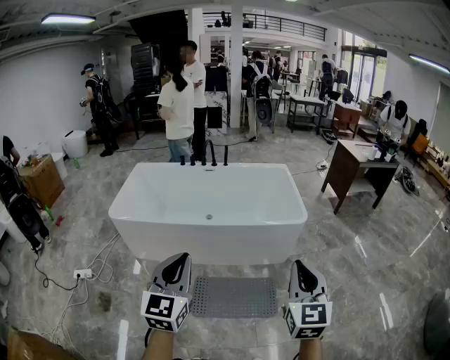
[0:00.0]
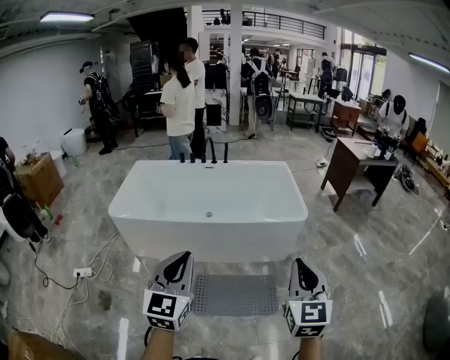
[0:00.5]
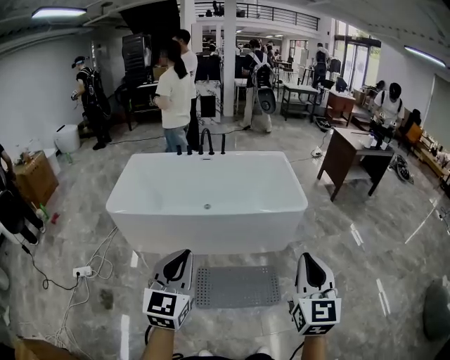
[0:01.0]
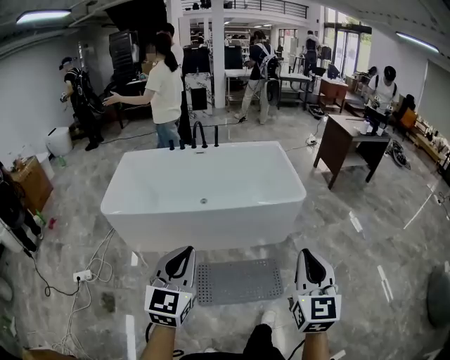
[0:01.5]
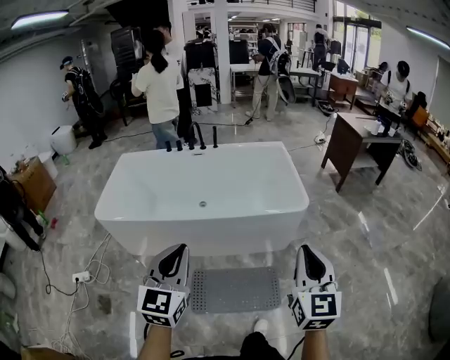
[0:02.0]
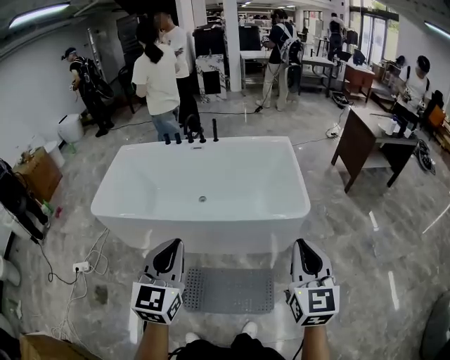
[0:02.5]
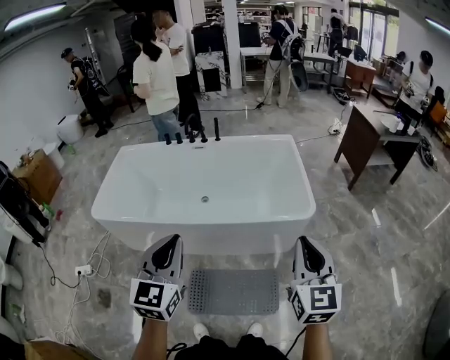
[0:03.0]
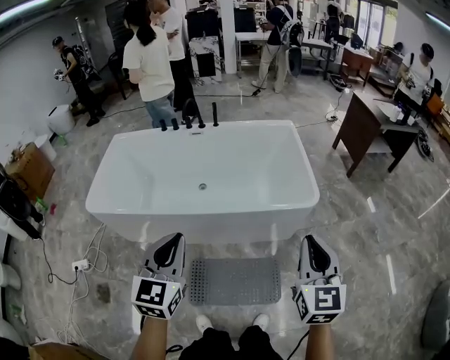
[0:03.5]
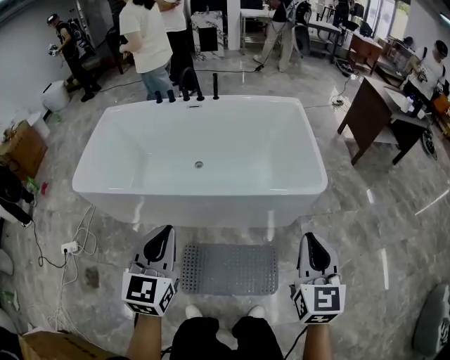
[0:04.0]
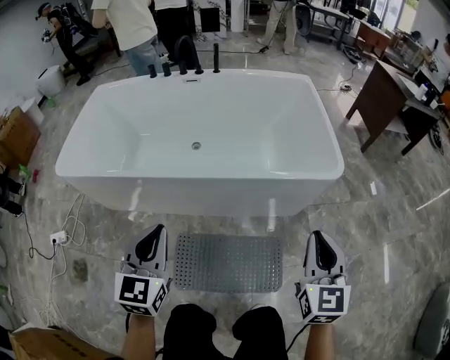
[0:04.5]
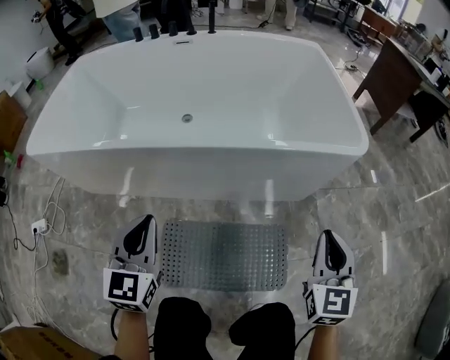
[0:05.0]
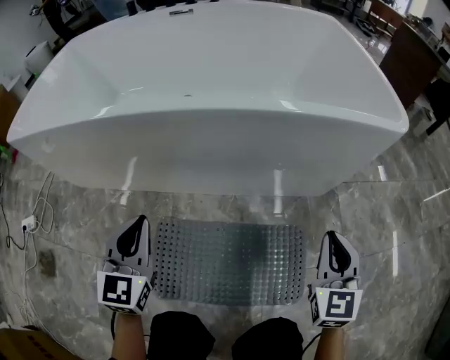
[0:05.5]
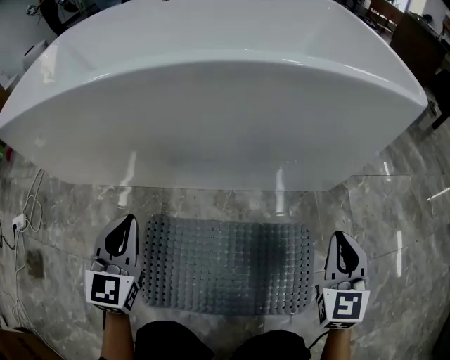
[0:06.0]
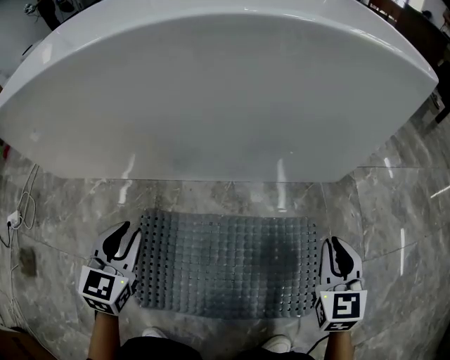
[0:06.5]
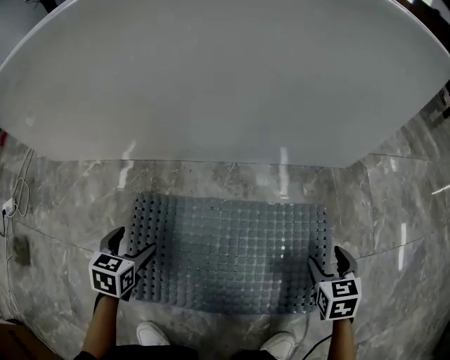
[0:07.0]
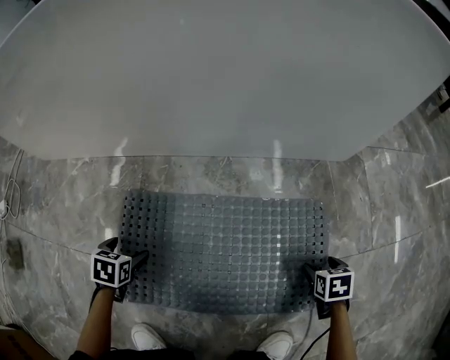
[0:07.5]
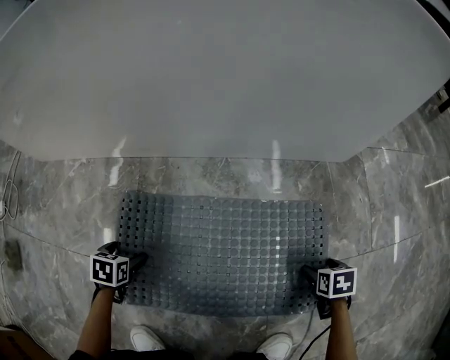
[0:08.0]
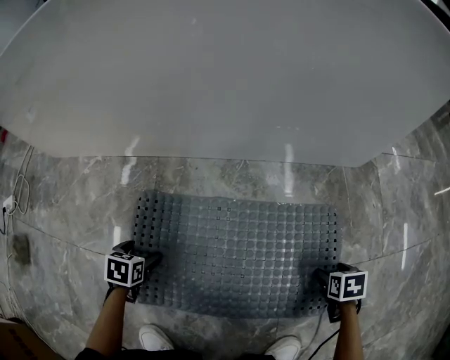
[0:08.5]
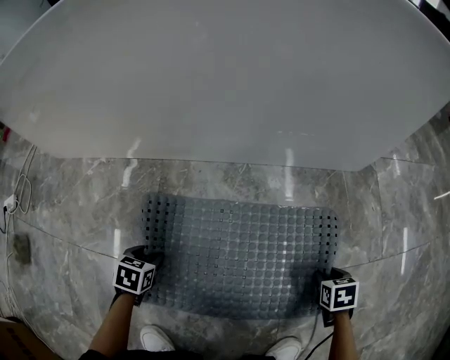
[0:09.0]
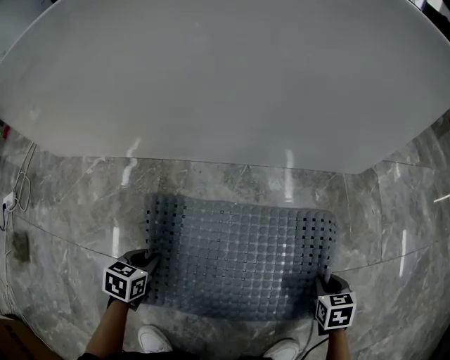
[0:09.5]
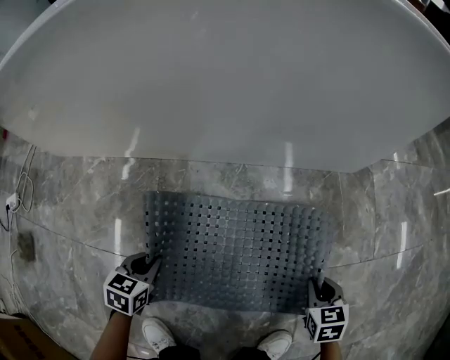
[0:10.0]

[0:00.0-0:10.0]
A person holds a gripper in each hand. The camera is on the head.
0:00.0 to 0:02.0: Both grippers travel together forward, some 10 cm.
0:02.0 to 0:04.0: The grippers both shift forward and downward by some 20 cm.
0:04.0 to 0:06.0: Both grippers travel together downward, approximately 60 cm.
0:06.0 to 0:08.0: Both grippers move downward, approximately 35 cm. The right gripper tips its fingers downward by approximately 60 degrees, and opens its fingers, while the left gripper tips its fingers downward by roughly 60 degrees, and opens up.
0:08.0 to 0:10.0: The grippers both shift upward by approximately 10 cm. The right gripper changes its angle by roughly 20 degrees, and closes its fingers. The left gripper closes up.

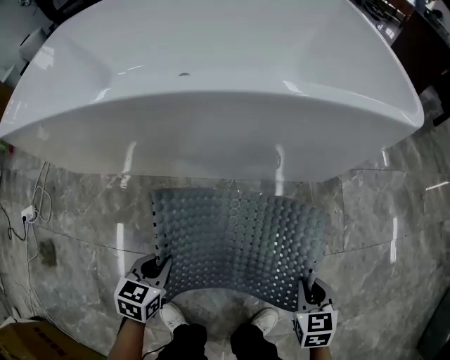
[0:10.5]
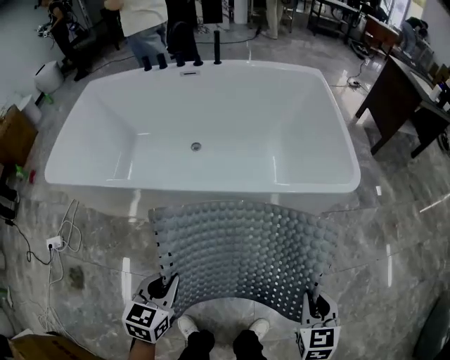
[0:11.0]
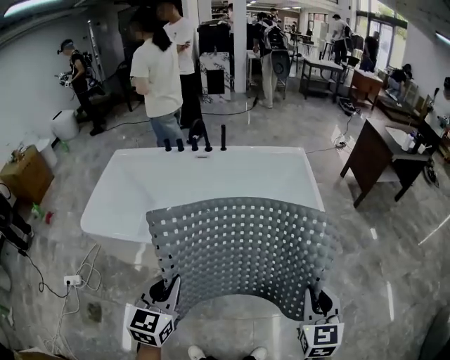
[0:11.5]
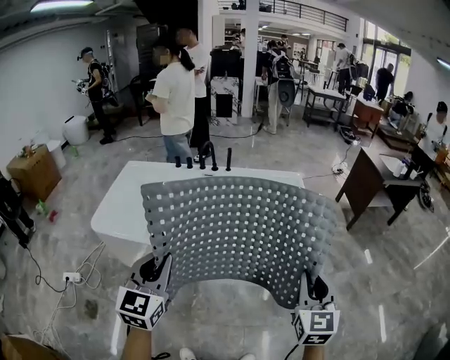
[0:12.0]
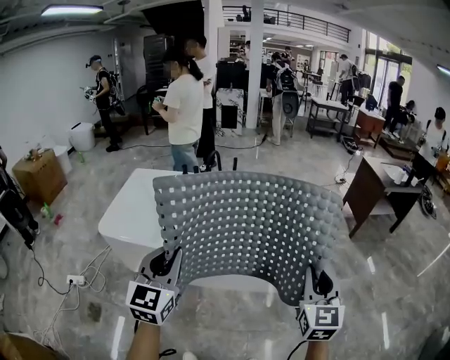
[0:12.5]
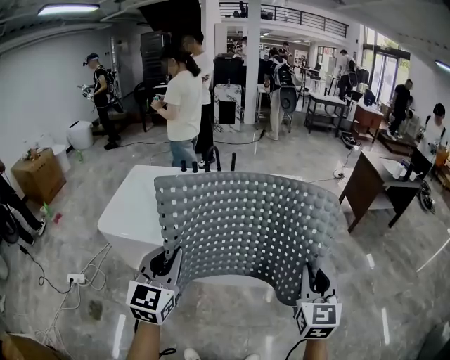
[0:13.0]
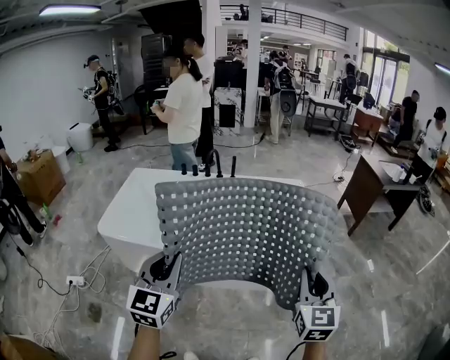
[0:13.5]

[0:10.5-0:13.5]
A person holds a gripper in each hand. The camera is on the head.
0:10.5 to 0:12.0: The two grippers go approximately 80 cm upward. The left gripper angles its fingers upward, by about 40 degrees. Meanwhile the right gripper angles its fingers upward, by approximately 40 degrees.
0:12.0 to 0:13.5: The grippers stay close to where they were, moving slightly.

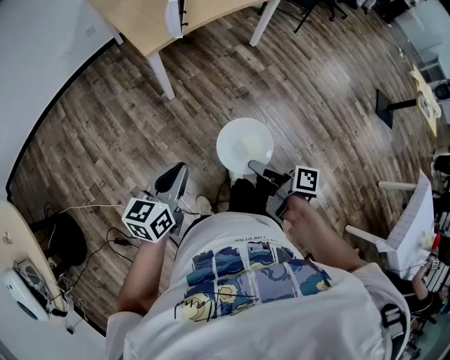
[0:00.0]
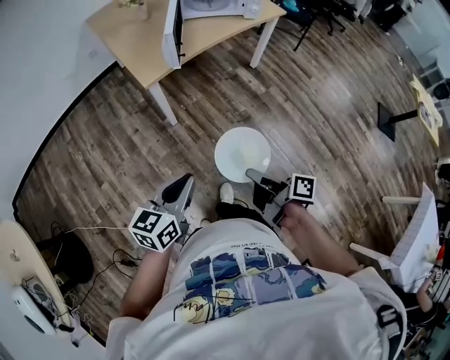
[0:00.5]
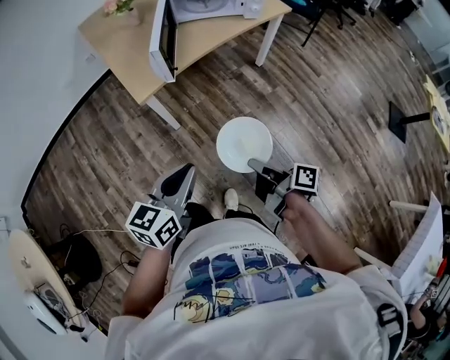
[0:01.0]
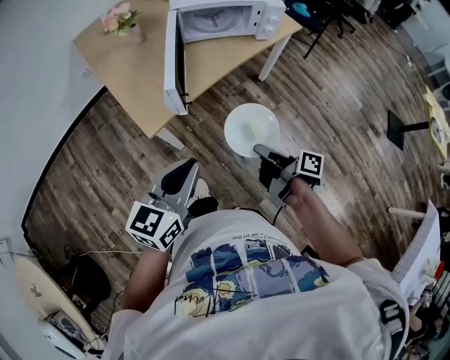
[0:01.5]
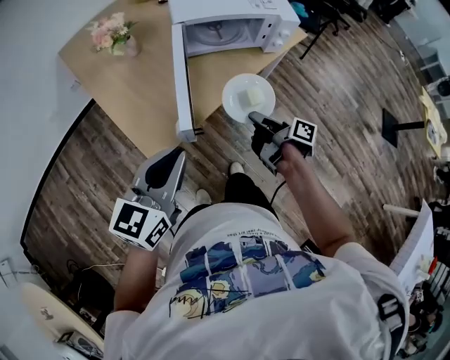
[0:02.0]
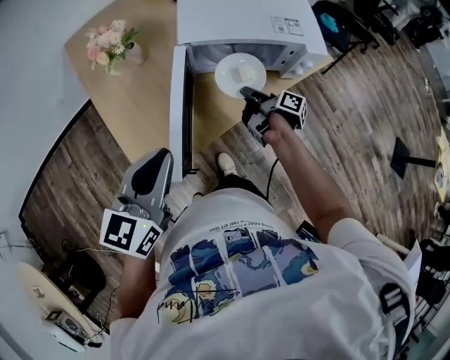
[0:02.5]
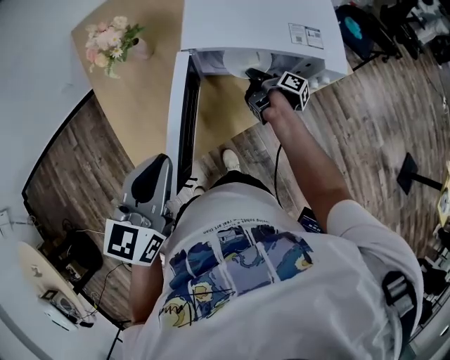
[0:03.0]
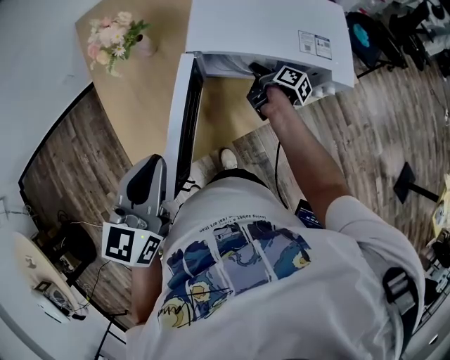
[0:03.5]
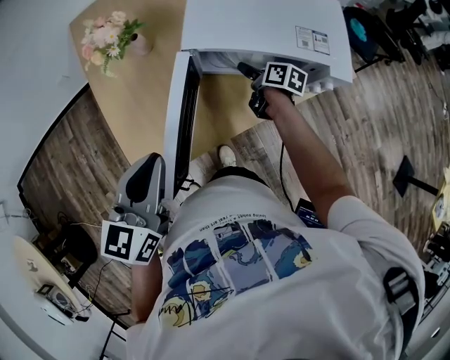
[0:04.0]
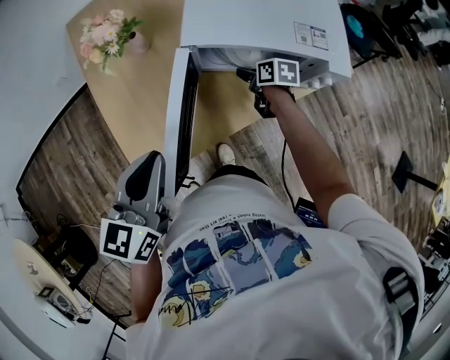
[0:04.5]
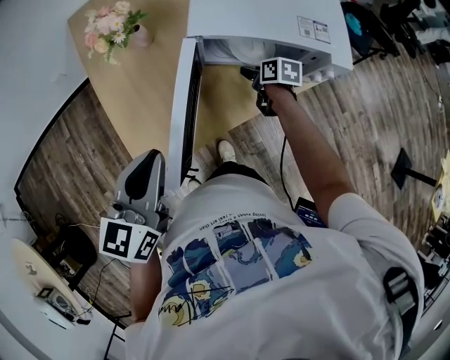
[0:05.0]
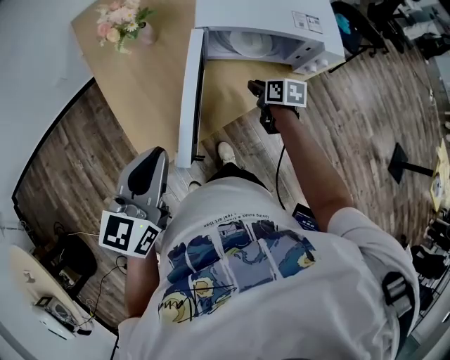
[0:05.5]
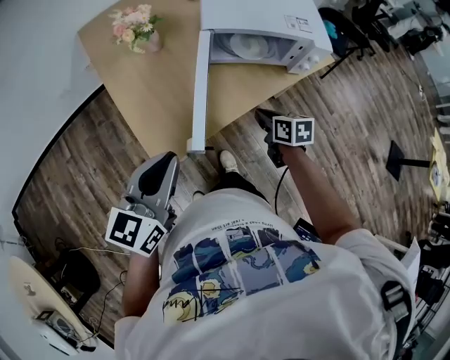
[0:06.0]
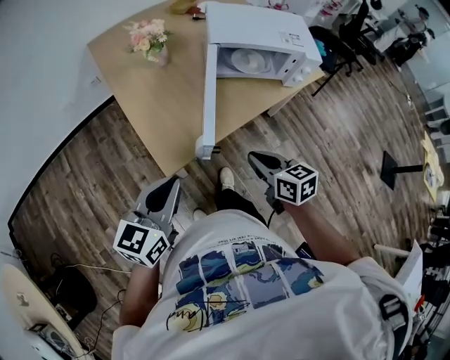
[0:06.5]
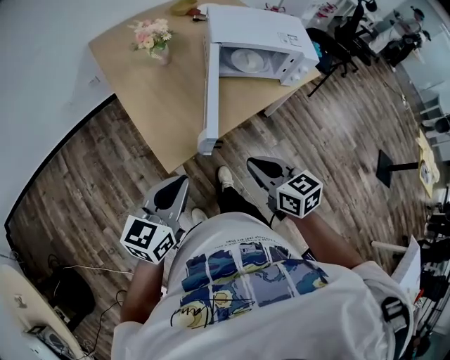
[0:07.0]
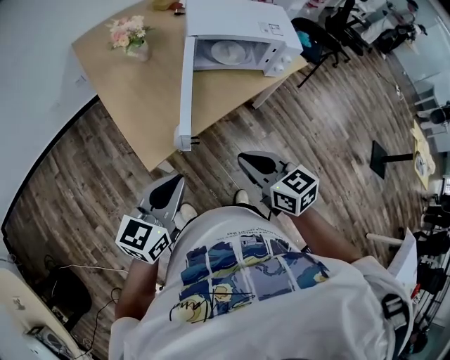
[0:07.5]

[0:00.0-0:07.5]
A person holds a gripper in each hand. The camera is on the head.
0:00.0 to 0:02.0: The two grippers travel together, forward, approximately 50 cm.
0:02.0 to 0:04.0: The left gripper moves forward, approximately 15 cm, and changes its angle by about 30 degrees, while the right gripper moves forward, some 35 cm, turns by some 40 degrees, and opens its fingers.
0:04.0 to 0:05.5: The left gripper travels backward by about 5 cm; the right gripper heads backward, covering some 10 cm, and closes up.
0:05.5 to 0:07.5: The right gripper goes approximately 35 cm backward and upward, and changes its angle by roughly 30 degrees. The left gripper is displaced backward by roughly 15 cm.

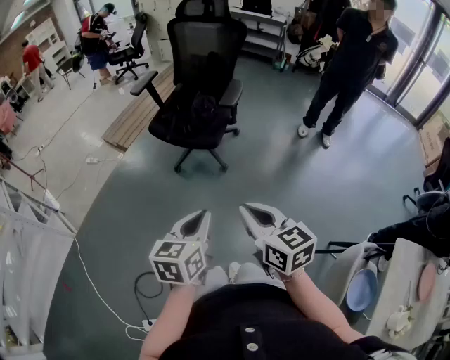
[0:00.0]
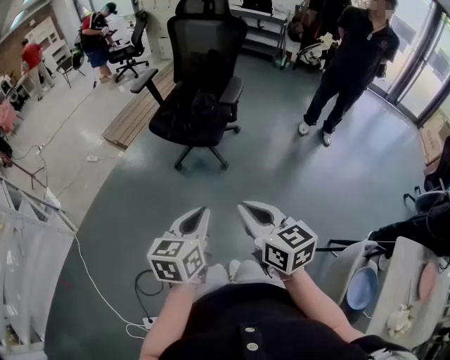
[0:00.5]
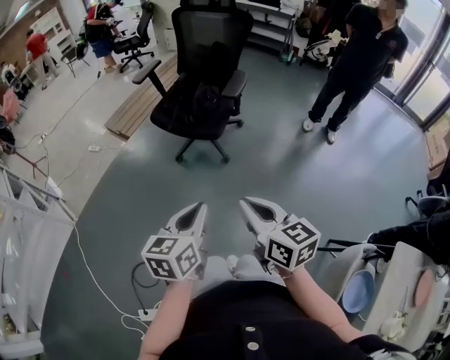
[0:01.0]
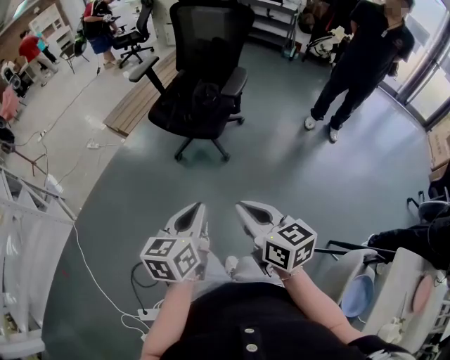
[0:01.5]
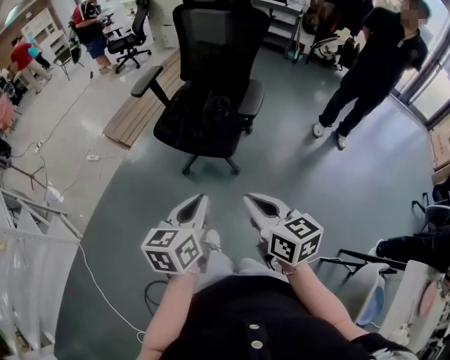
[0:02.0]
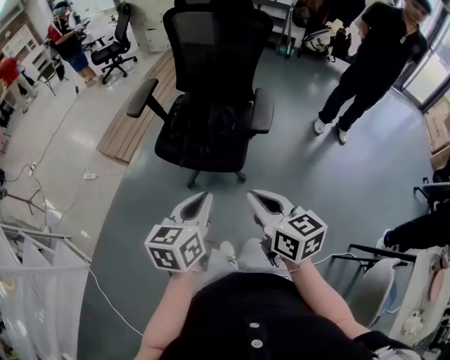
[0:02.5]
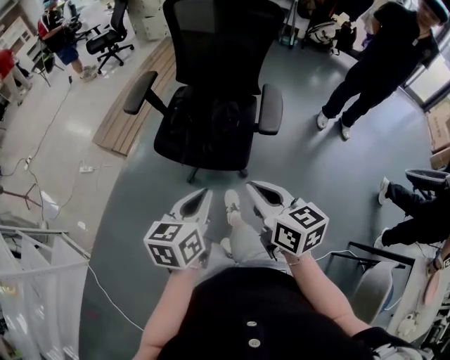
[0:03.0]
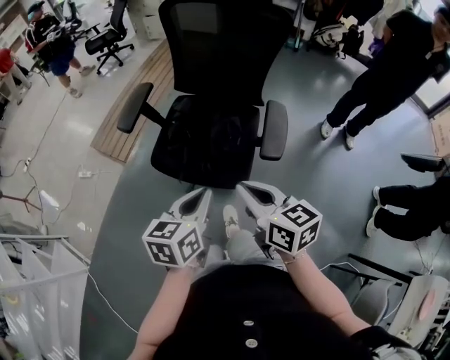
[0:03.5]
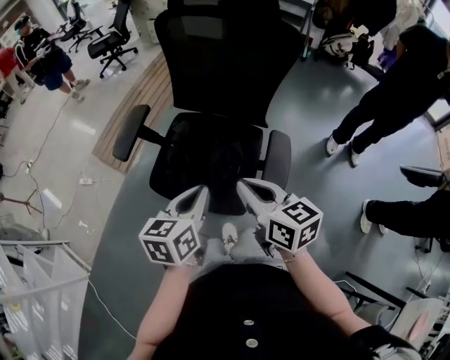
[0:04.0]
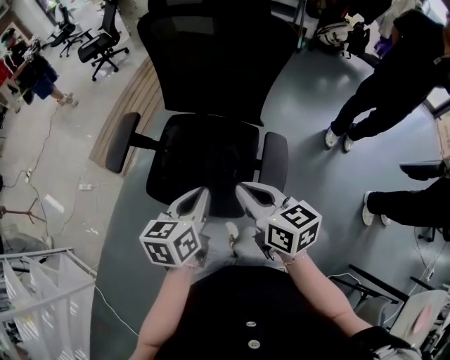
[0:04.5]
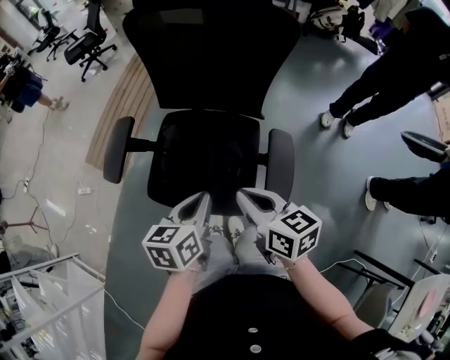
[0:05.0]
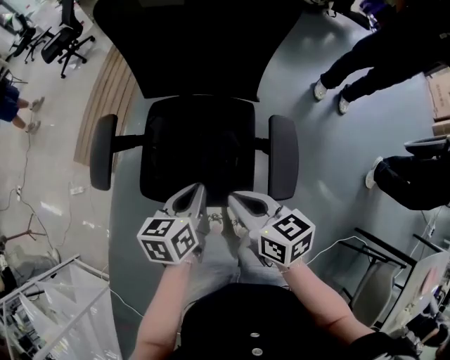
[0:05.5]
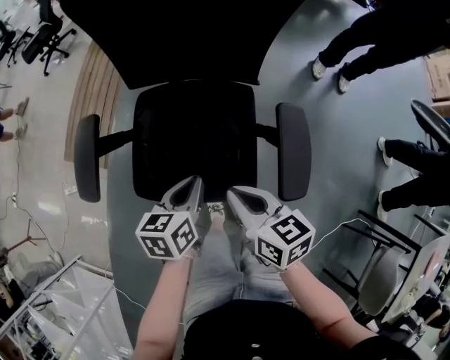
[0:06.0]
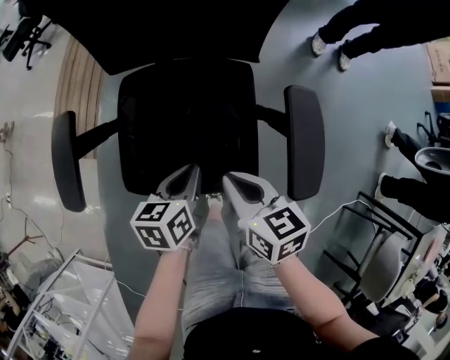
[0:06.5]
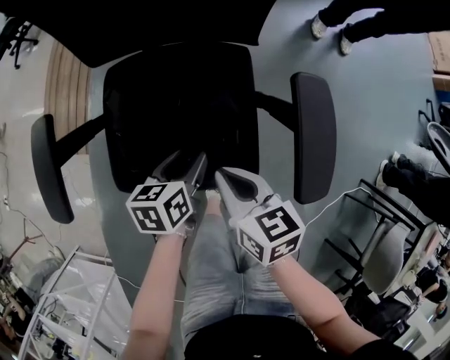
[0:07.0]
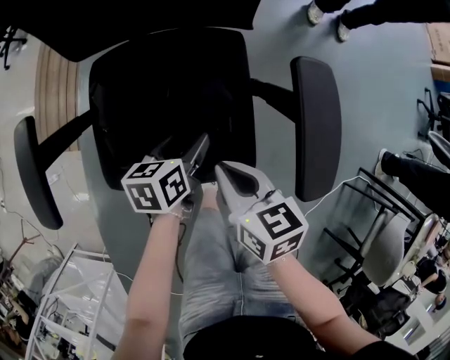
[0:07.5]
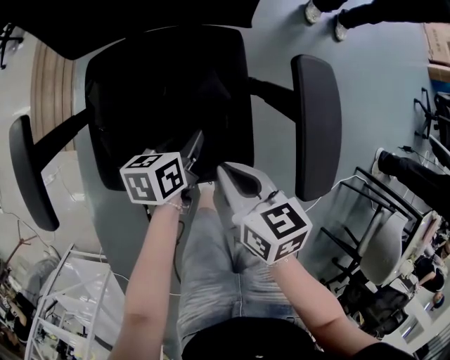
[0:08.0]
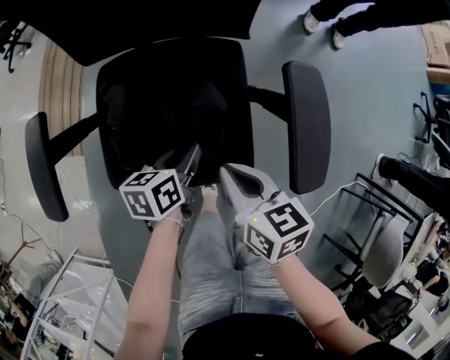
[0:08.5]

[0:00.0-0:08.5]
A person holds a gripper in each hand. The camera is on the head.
0:00.0 to 0:02.0: Both grippers move forward, some 20 cm.
0:02.0 to 0:04.0: Both grippers are carried forward, approximately 40 cm.
0:04.0 to 0:06.5: The two grippers go about 25 cm downward and forward. The left gripper turns by about 30 degrees, while the right gripper turns by approximately 30 degrees.
0:06.5 to 0:08.5: The left gripper goes roughly 5 cm downward, and opens and closes again.
